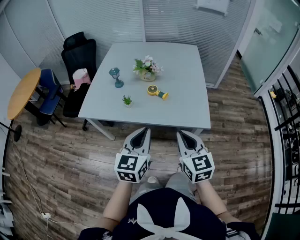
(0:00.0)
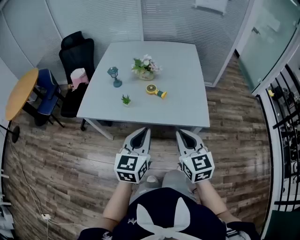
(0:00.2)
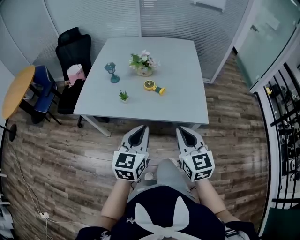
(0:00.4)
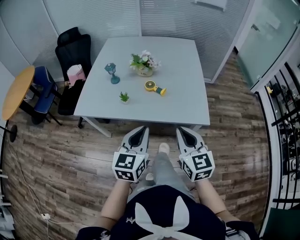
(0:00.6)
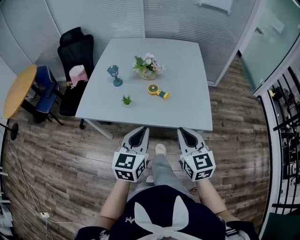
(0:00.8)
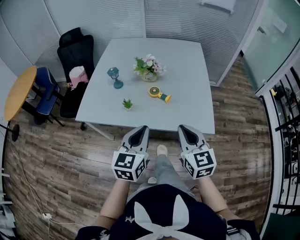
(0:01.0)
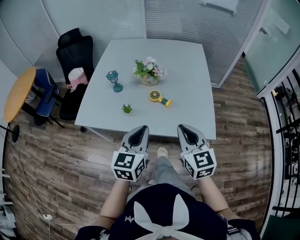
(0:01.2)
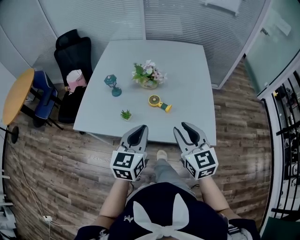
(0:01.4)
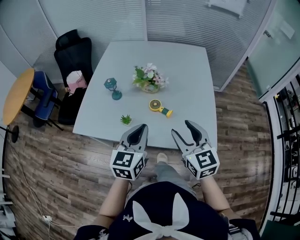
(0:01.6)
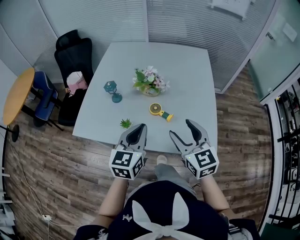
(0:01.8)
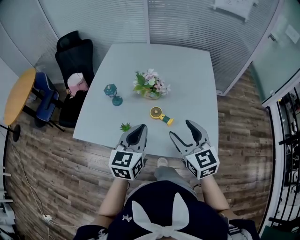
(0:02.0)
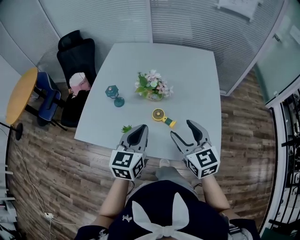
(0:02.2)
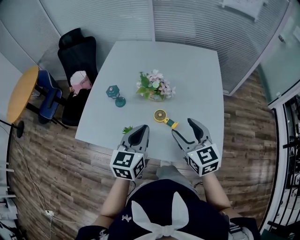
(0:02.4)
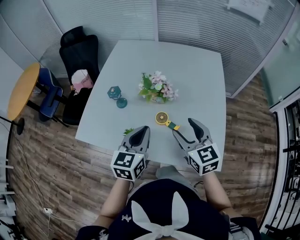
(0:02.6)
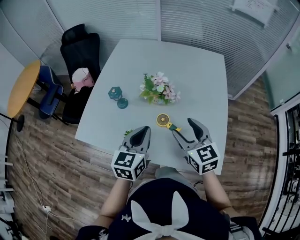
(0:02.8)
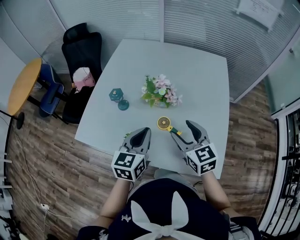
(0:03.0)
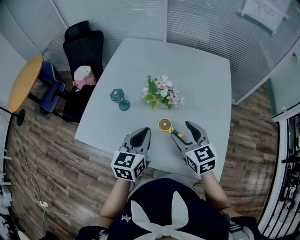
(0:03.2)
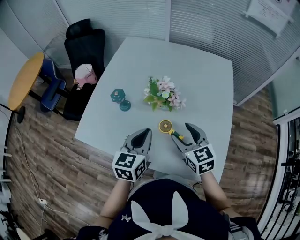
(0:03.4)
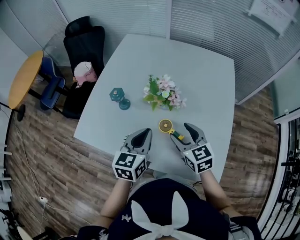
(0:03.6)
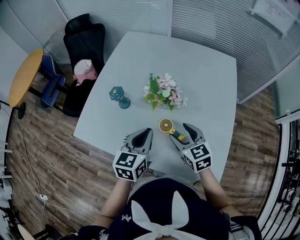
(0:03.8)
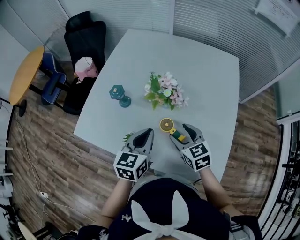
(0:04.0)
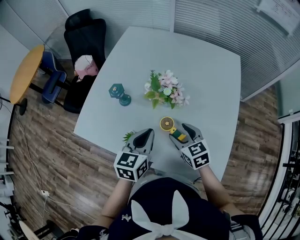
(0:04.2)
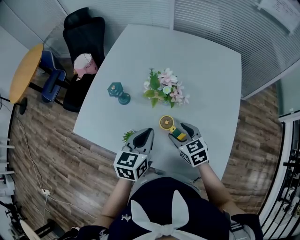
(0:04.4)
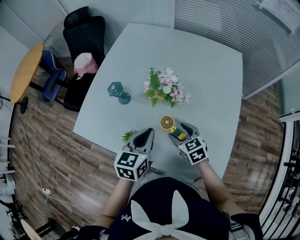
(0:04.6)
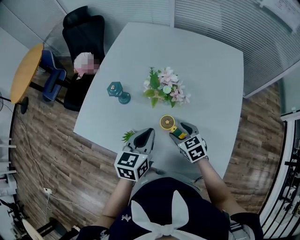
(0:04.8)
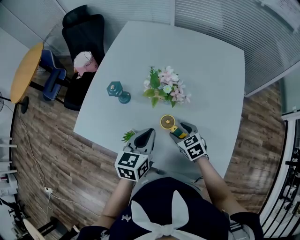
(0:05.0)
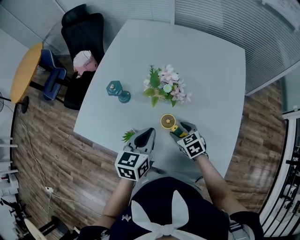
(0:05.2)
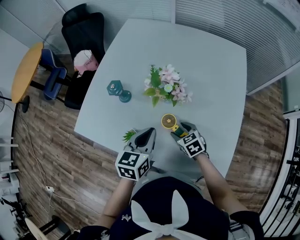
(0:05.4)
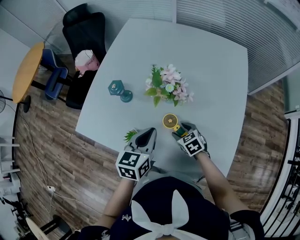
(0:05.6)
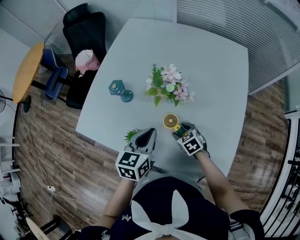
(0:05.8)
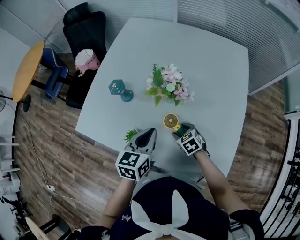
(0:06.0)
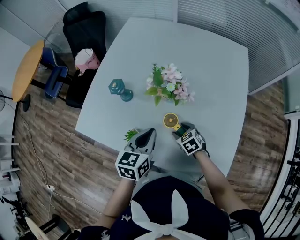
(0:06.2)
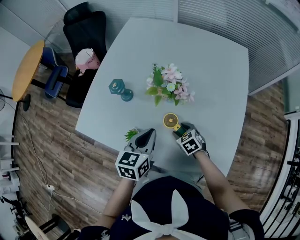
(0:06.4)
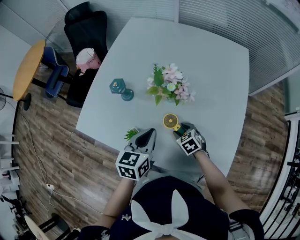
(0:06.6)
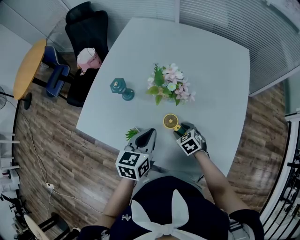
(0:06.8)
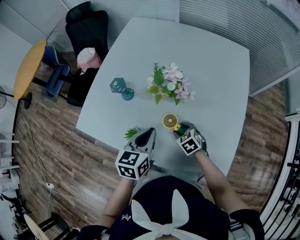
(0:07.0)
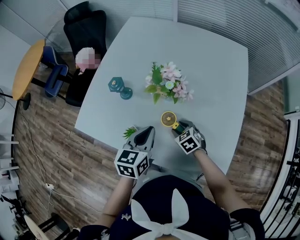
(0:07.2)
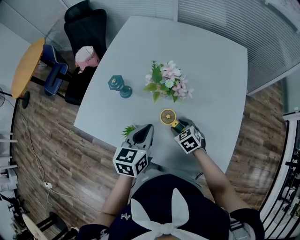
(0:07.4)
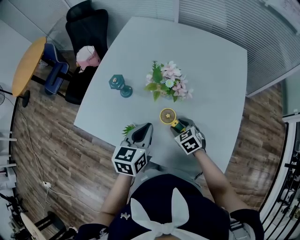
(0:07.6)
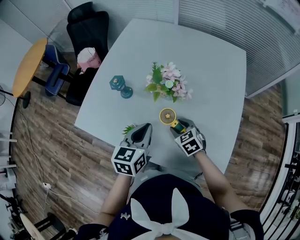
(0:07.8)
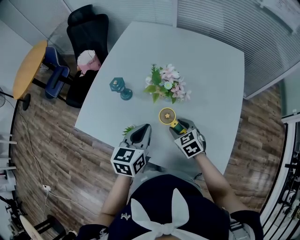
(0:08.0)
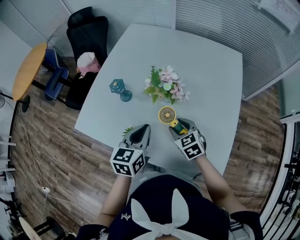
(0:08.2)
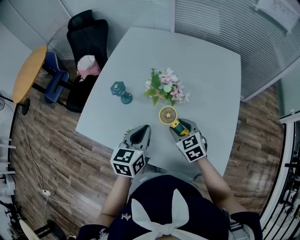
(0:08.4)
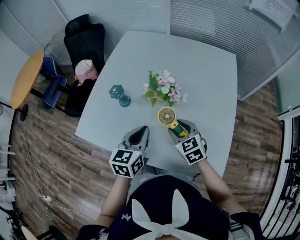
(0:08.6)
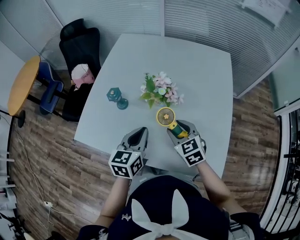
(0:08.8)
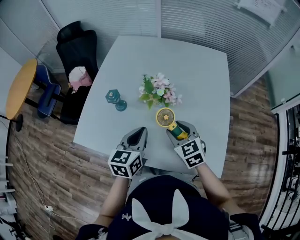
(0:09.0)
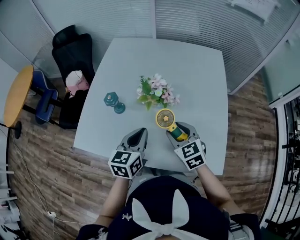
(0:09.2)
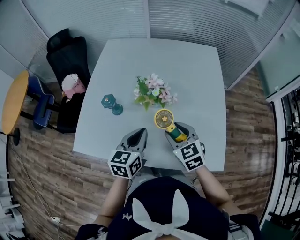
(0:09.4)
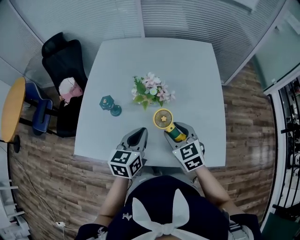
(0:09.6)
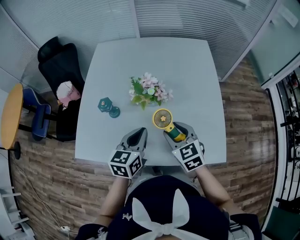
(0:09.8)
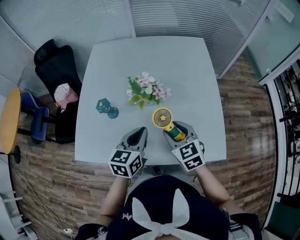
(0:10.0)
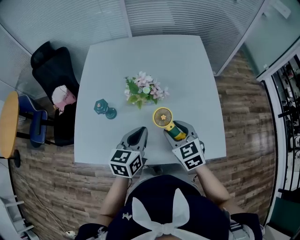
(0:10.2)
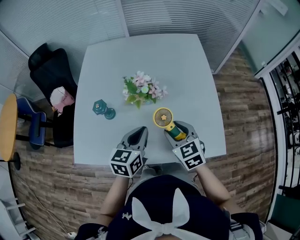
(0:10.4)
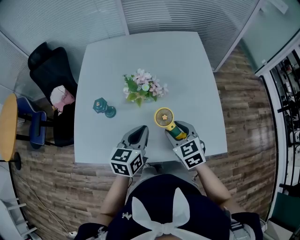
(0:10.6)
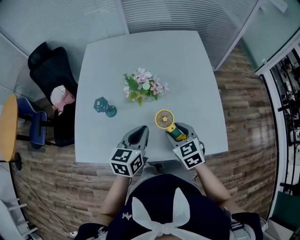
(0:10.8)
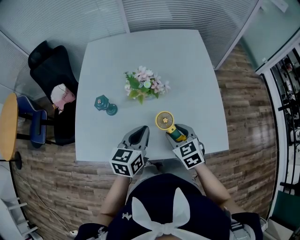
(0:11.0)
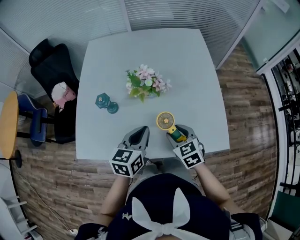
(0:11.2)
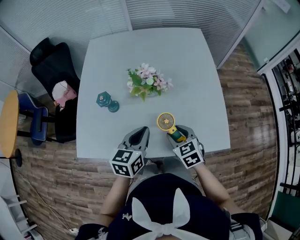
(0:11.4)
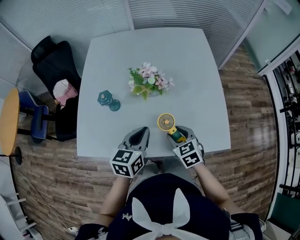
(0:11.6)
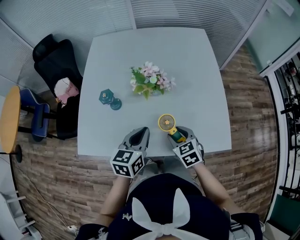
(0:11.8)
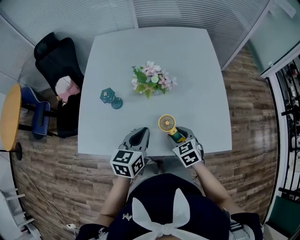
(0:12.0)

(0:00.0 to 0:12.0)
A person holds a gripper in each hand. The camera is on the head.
0:00.0 - 0:01.6: Both grippers move forward, about 20 cm. The right gripper opens its fingers.
0:01.6 - 0:03.0: Both grippers travel together forward, about 15 cm.
0:03.0 - 0:04.4: The right gripper is displaced downward by about 15 cm. The left gripper goes some 5 cm downward.
0:04.4 - 0:06.0: The right gripper travels downward by roughly 15 cm.
0:06.0 - 0:07.6: The right gripper ends up approximately 5 cm from where it was.
0:07.6 - 0:09.0: The right gripper is displaced upward by some 15 cm, and changes its angle by roughly 20 degrees.
0:09.0 - 0:10.4: The grippers move only a little.
0:10.4 - 0:12.0: The right gripper heads downward and backward, covering approximately 10 cm. Meanwhile the left gripper shifts by about 5 cm.

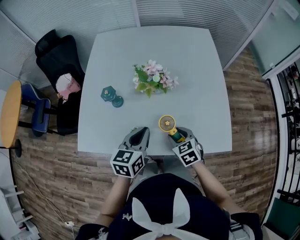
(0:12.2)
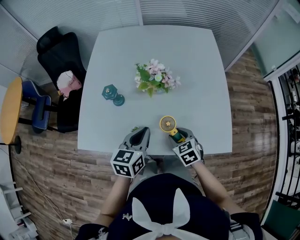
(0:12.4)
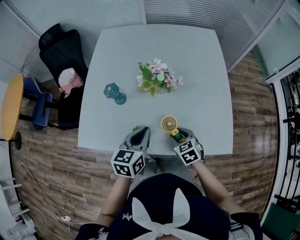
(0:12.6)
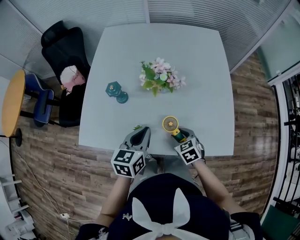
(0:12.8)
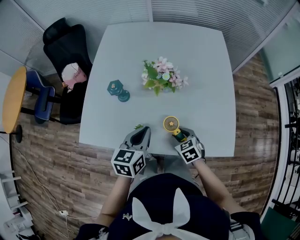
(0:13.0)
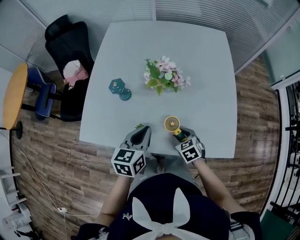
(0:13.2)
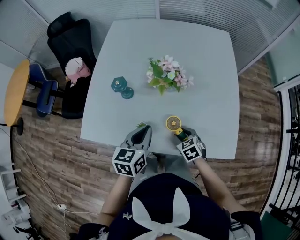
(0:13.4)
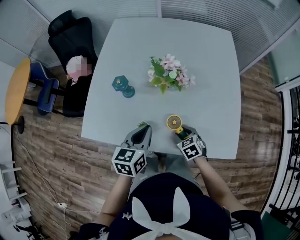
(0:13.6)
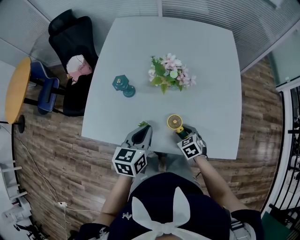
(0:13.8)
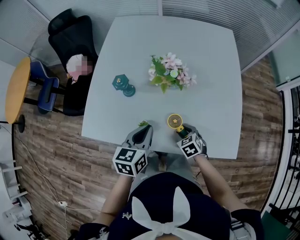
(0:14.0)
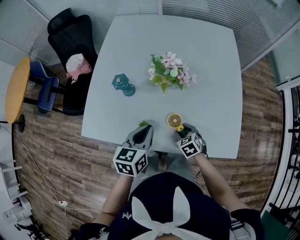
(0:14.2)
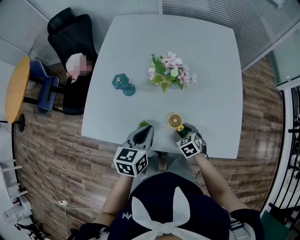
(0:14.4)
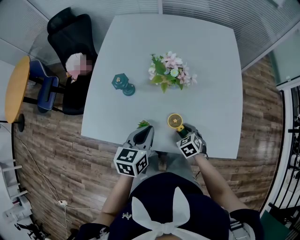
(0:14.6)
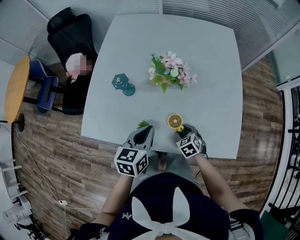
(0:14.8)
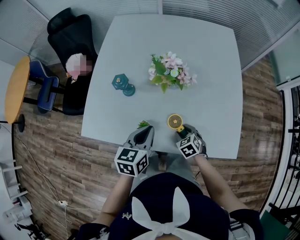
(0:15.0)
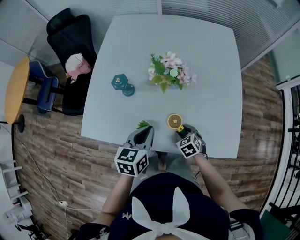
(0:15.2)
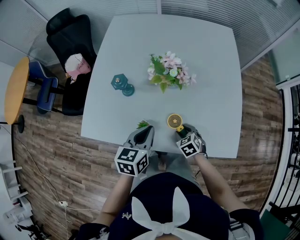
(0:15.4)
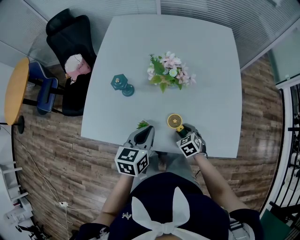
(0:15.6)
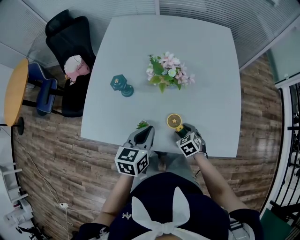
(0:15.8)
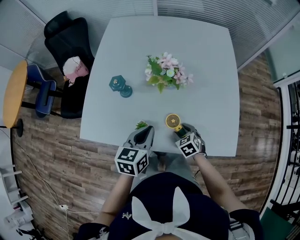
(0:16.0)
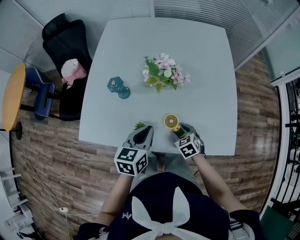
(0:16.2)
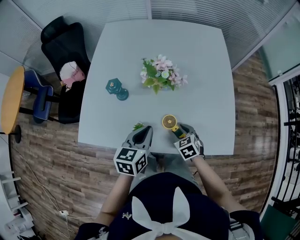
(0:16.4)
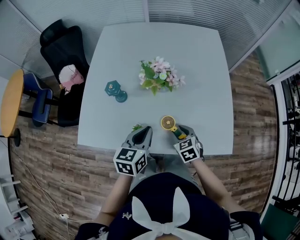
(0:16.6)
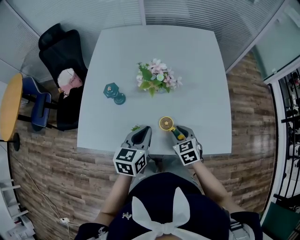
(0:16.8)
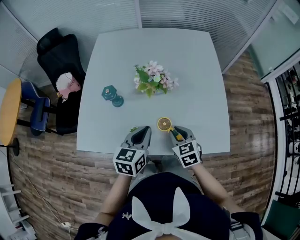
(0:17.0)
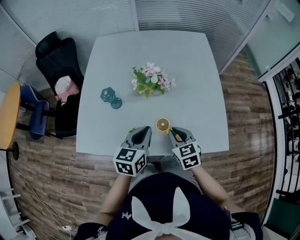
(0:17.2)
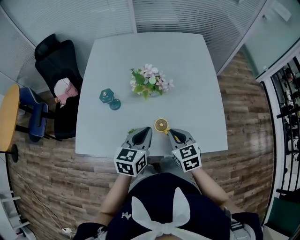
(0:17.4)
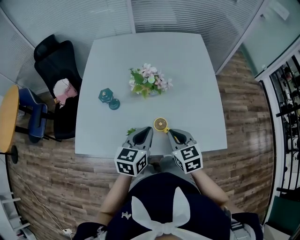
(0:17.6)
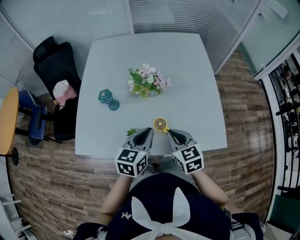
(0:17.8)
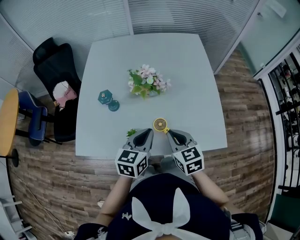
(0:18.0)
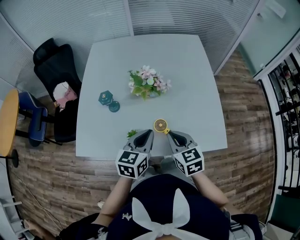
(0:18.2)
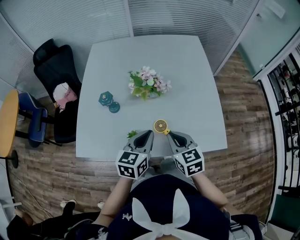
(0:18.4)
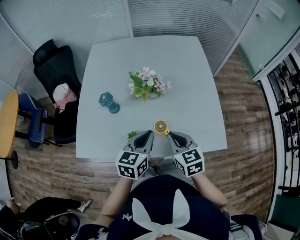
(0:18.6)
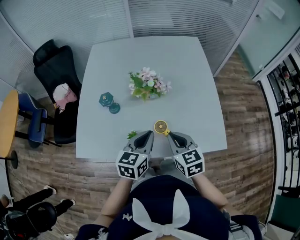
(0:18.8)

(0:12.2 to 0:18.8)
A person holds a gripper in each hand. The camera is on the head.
0:12.2 - 0:13.8: The right gripper goes some 10 cm downward.
0:13.8 - 0:15.4: The grippers move only a little.
0:15.4 - 0:17.2: The right gripper travels upward by approximately 15 cm, changes its angle by roughly 30 degrees, and closes its fingers.
0:17.2 - 0:18.8: The right gripper shifts roughly 5 cm upward.

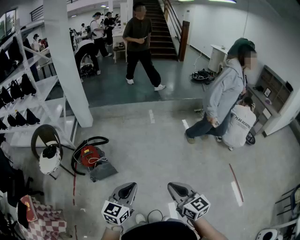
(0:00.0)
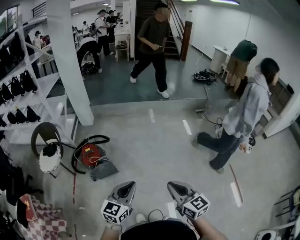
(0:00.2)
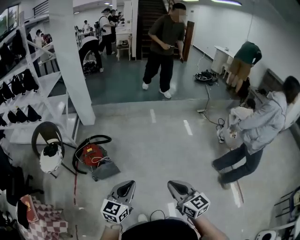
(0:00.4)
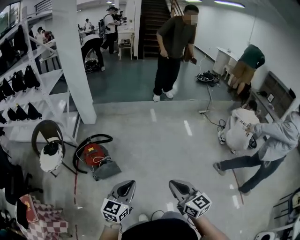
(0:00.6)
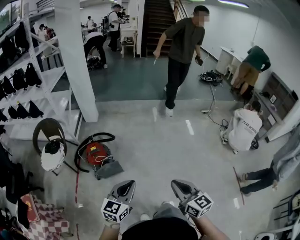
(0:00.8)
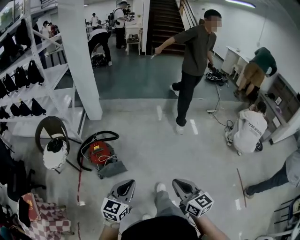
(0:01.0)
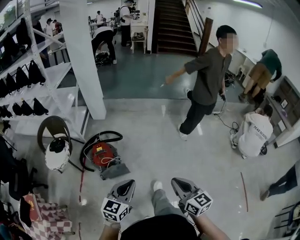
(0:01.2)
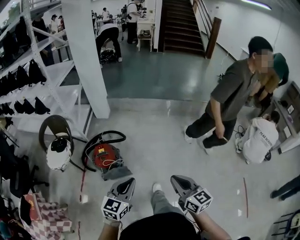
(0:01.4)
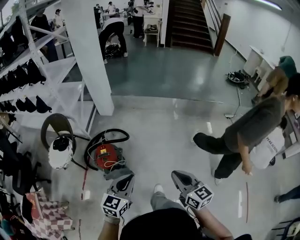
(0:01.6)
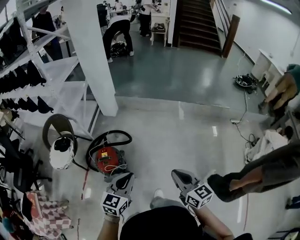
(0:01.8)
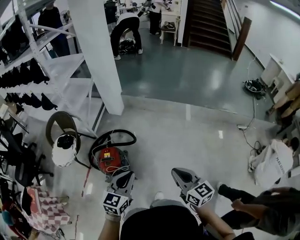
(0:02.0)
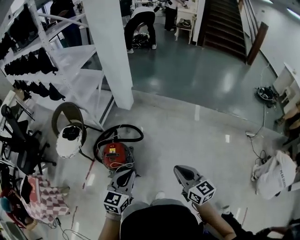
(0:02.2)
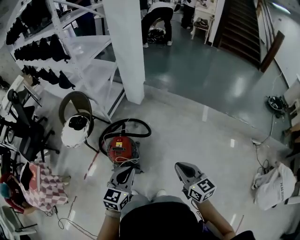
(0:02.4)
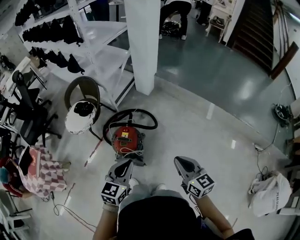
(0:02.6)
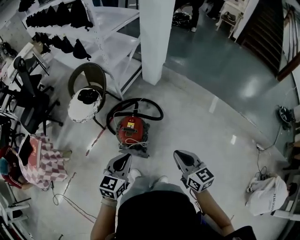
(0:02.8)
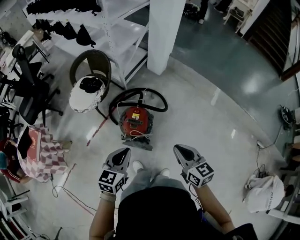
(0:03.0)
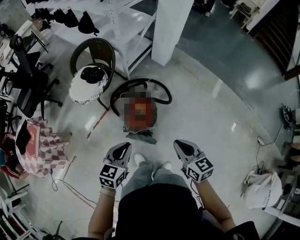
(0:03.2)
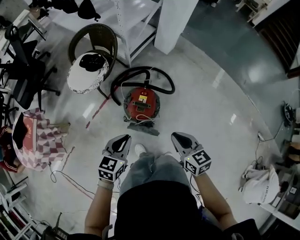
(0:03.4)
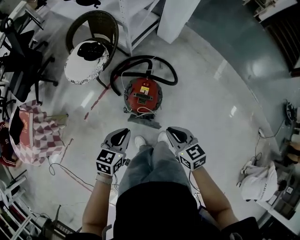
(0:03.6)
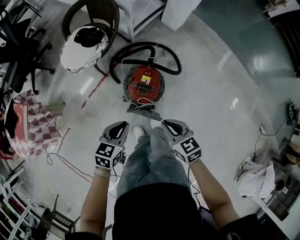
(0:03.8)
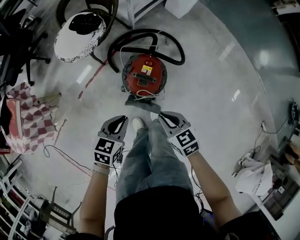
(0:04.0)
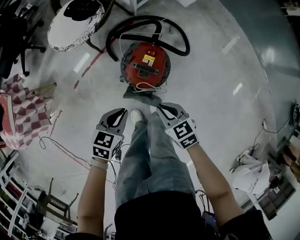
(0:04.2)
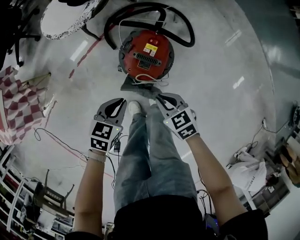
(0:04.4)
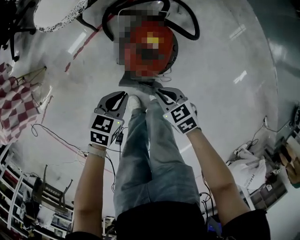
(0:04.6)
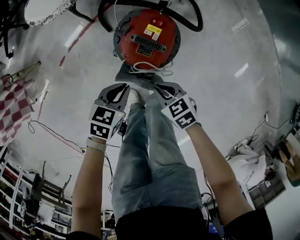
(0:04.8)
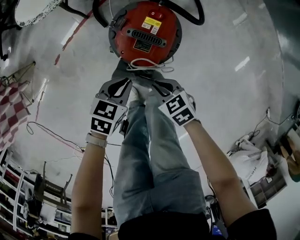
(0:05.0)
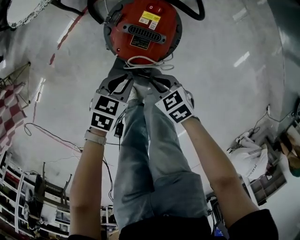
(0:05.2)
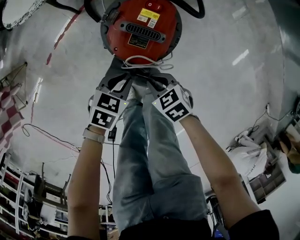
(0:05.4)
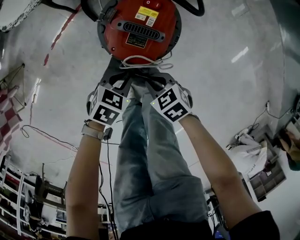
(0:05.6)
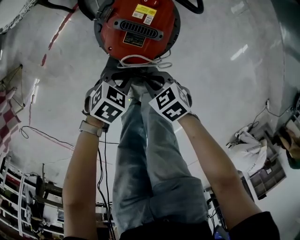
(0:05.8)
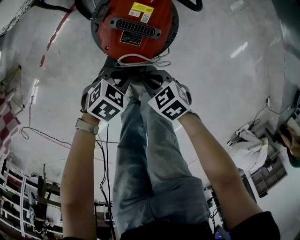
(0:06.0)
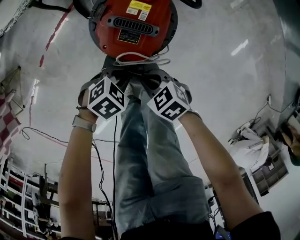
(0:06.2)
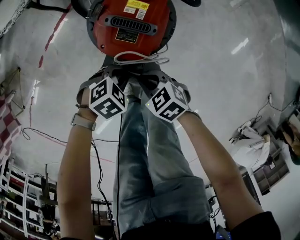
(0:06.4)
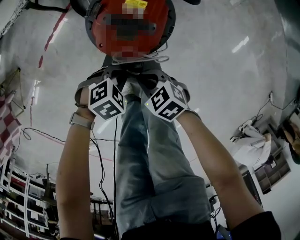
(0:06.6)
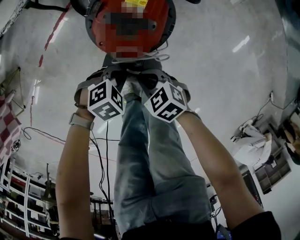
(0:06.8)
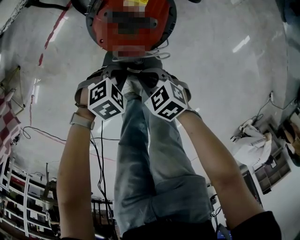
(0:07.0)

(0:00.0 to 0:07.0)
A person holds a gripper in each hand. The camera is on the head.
0:00.0 - 0:01.4: Both grippers move forward and to the left, some 25 cm.
0:01.4 - 0:02.8: The right gripper moves about 35 cm, and changes its angle by some 30 degrees. Meanwhile the left gripper changes place by approximately 25 cm, and changes its angle by some 40 degrees.
0:02.8 - 0:04.2: The right gripper moves downward and to the left, approximately 40 cm, and changes its angle by roughly 40 degrees. The left gripper shifts approximately 35 cm downward, and changes its angle by approximately 30 degrees.
0:04.2 - 0:05.6: Both grippers travel together downward, approximately 25 cm. The left gripper swivels some 20 degrees.
0:05.6 - 0:07.0: The left gripper swivels approximately 30 degrees.
